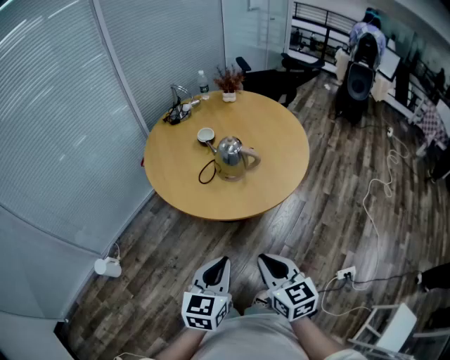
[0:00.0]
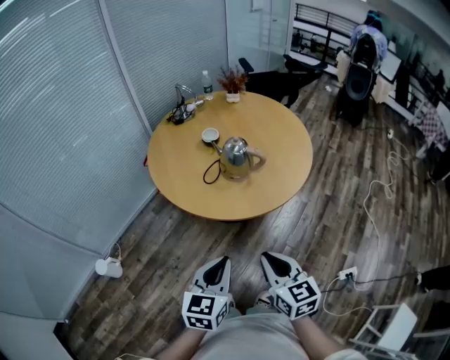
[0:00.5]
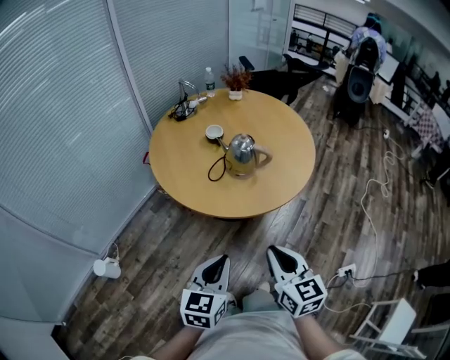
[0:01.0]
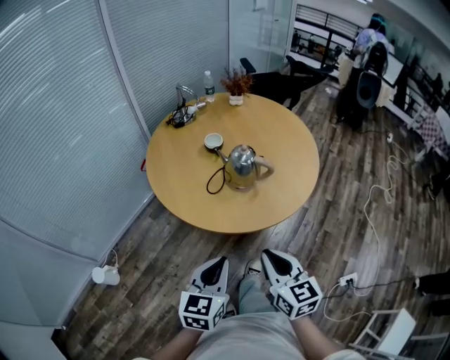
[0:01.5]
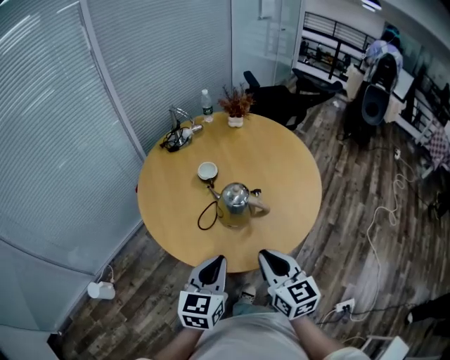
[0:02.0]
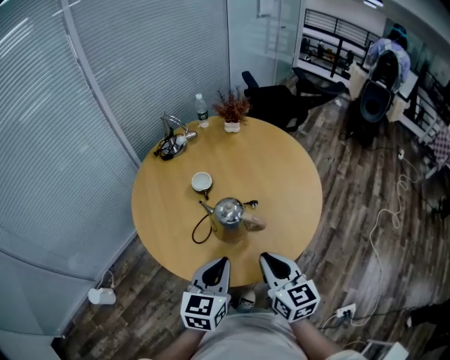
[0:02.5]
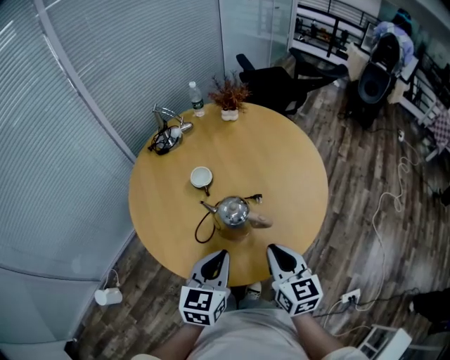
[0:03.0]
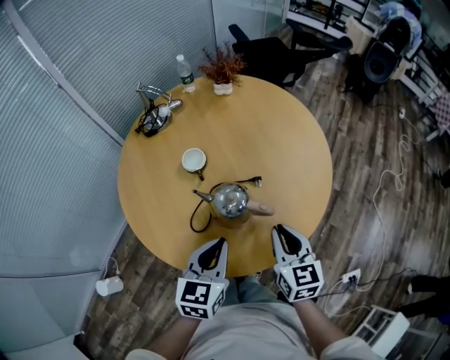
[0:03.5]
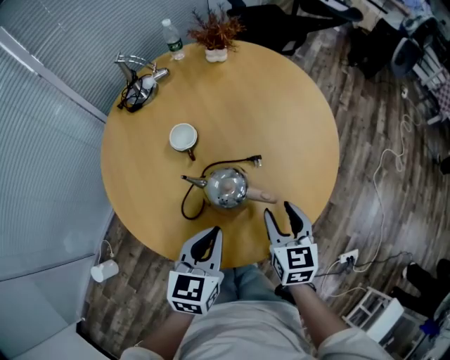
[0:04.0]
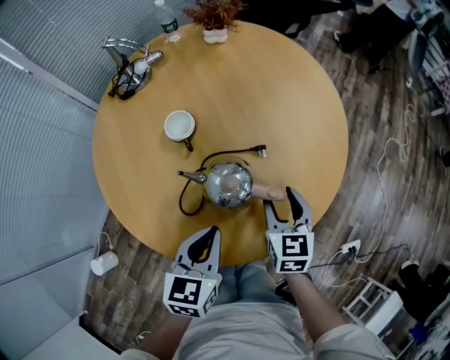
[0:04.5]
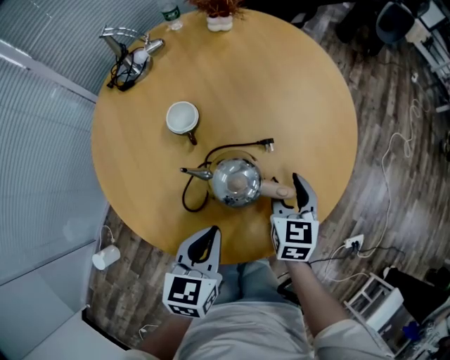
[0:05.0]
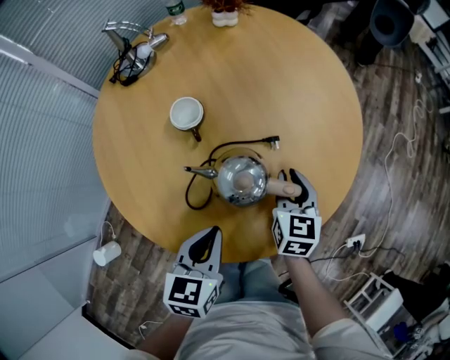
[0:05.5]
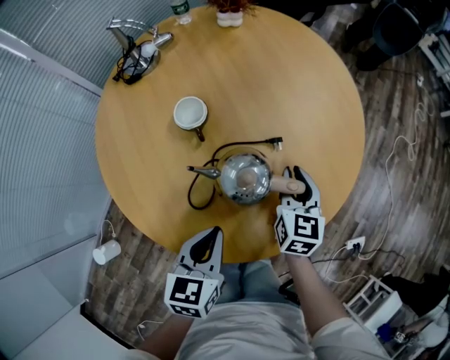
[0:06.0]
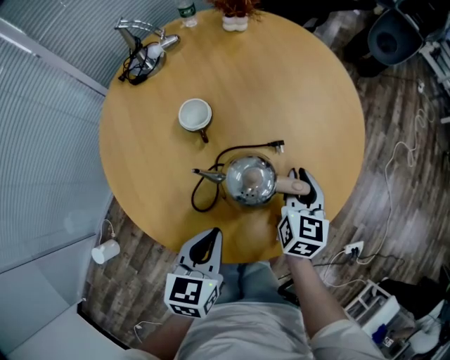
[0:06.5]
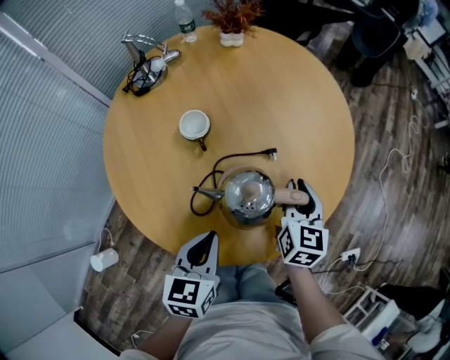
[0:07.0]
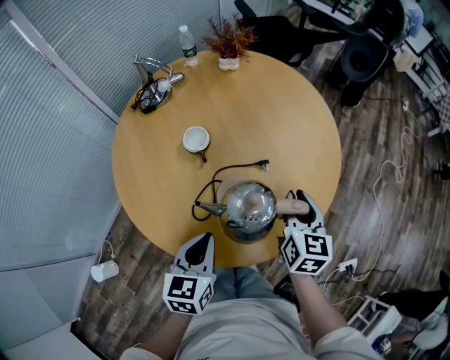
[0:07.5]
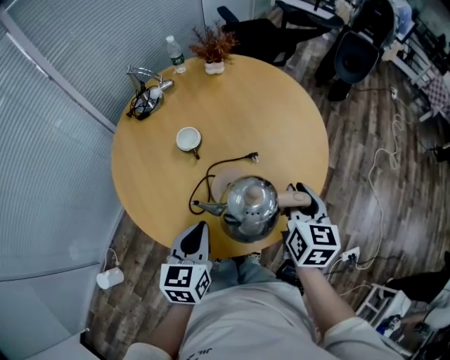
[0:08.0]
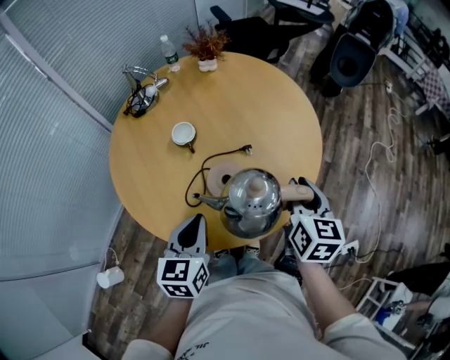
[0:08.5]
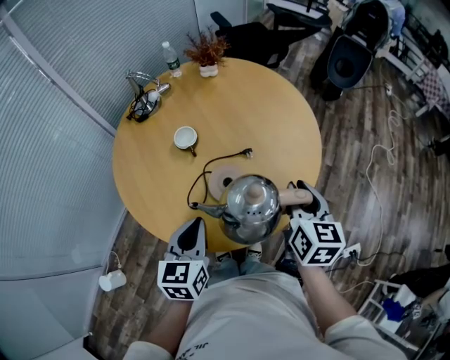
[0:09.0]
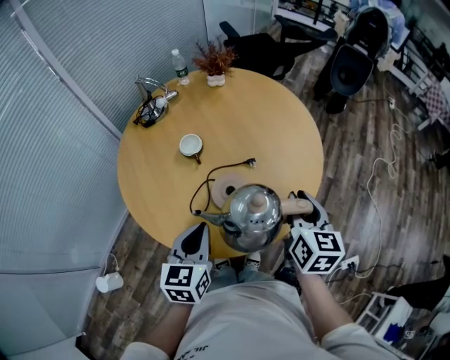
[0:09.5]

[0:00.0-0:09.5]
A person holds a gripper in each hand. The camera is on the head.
0:00.0 to 0:02.0: Both grippers travel together forward, approximately 25 cm.
0:02.0 to 0:04.0: Both grippers move forward and downward, some 20 cm. The right gripper changes its angle by some 20 degrees, and opens its fingers.
0:04.0 to 0:05.5: The left gripper heads downward, covering approximately 5 cm. Meanwhile the right gripper goes roughly 10 cm forward and downward, and closes up.
0:05.5 to 0:07.5: The left gripper is displaced upward by roughly 5 cm, while the right gripper moves upward, about 10 cm.
0:07.5 to 0:09.5: The right gripper heads upward and backward, covering approximately 10 cm; the left gripper is displaced upward by about 5 cm.

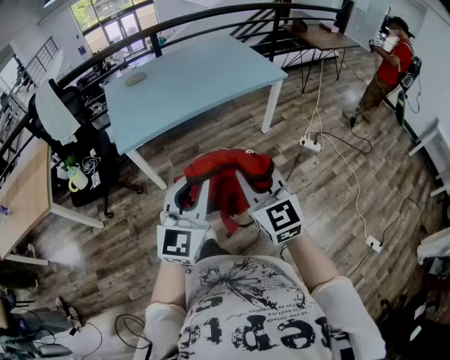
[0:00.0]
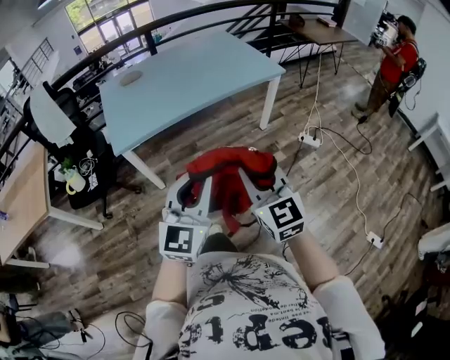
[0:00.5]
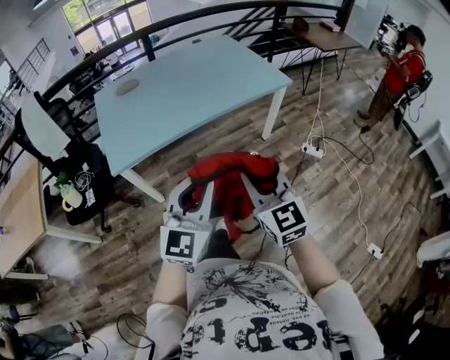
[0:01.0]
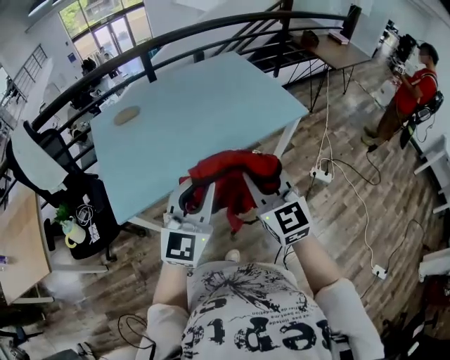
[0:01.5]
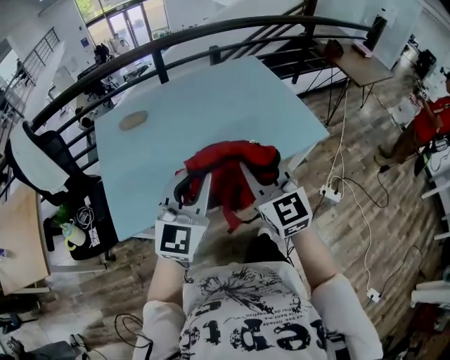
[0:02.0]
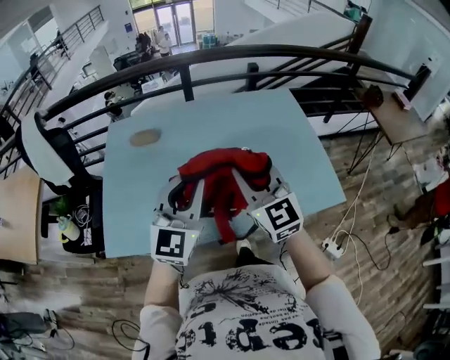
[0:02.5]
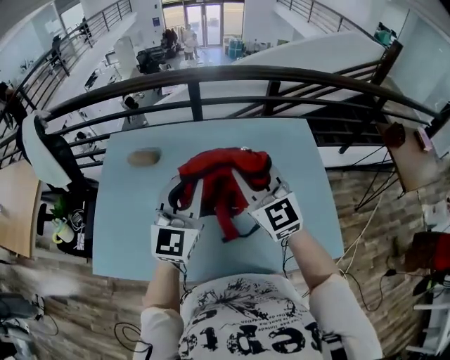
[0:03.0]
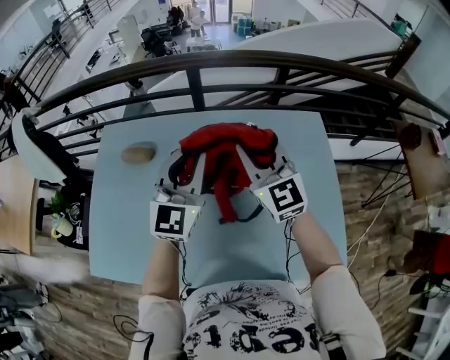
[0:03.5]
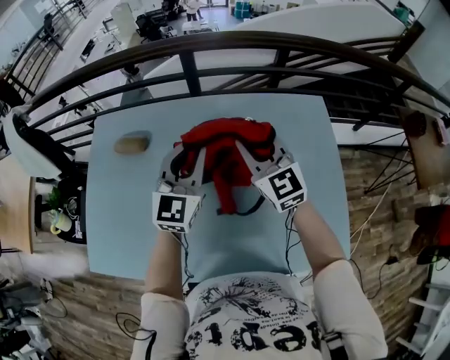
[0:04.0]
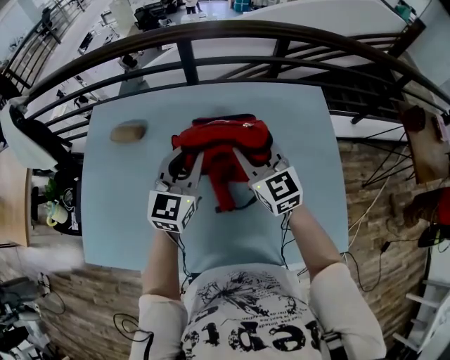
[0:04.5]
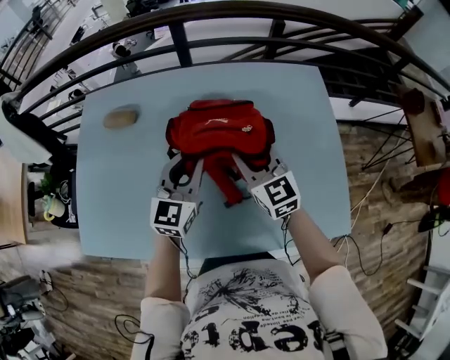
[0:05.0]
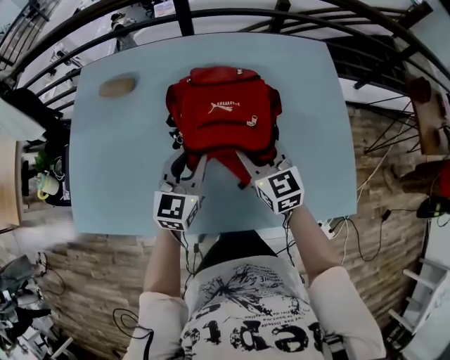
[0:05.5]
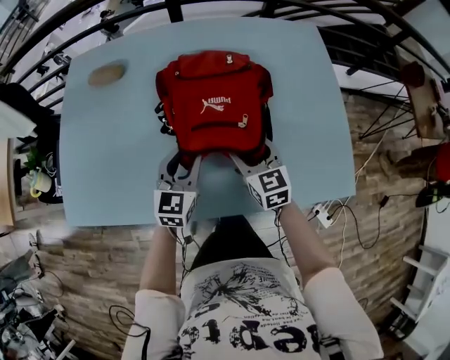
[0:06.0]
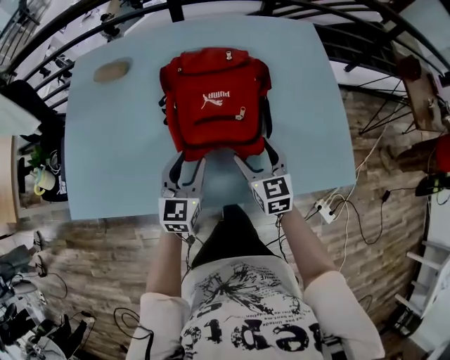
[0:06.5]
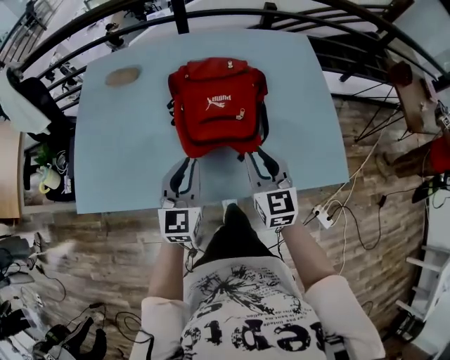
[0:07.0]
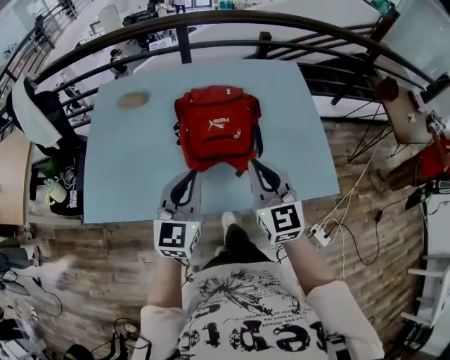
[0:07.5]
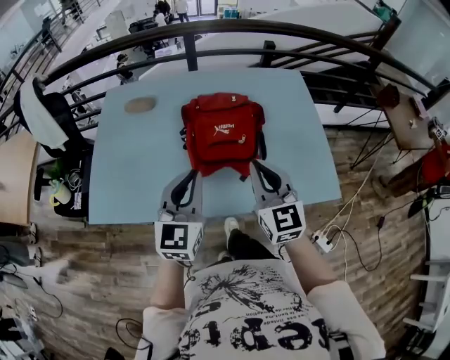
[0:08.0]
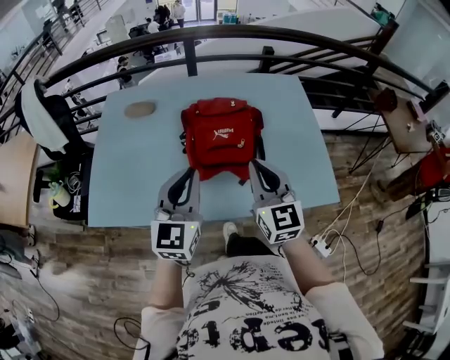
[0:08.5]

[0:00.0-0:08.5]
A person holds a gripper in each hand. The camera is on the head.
0:00.0 to 0:02.0: Both grippers are carried forward, approximately 60 cm.
0:02.0 to 0:04.0: Both grippers are carried about 50 cm. The left gripper swivels some 20 degrees. Meanwhile the right gripper rotates some 30 degrees.
0:04.0 to 0:06.5: Both grippers travel together backward and downward, roughly 35 cm. The left gripper changes its angle by about 20 degrees, and opens its fingers, while the right gripper changes its angle by approximately 30 degrees, and opens its fingers.
0:06.5 to 0:08.5: The two grippers go about 25 cm upward. The right gripper turns by about 20 degrees, and closes its fingers. The left gripper closes.

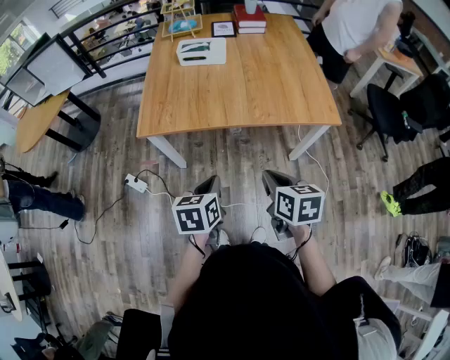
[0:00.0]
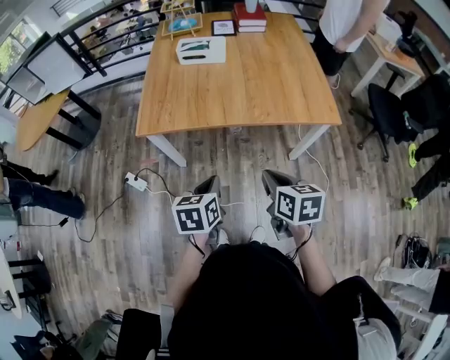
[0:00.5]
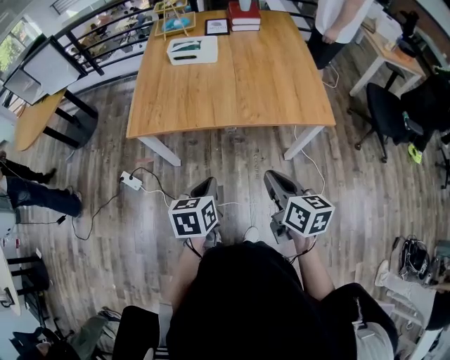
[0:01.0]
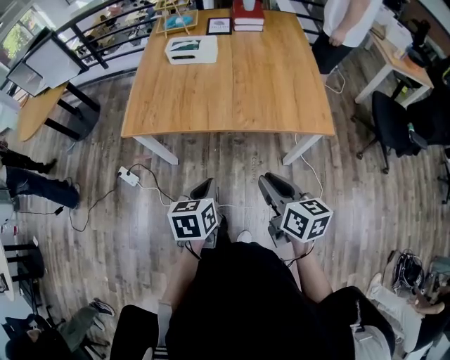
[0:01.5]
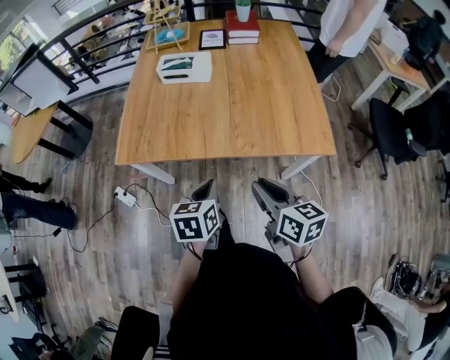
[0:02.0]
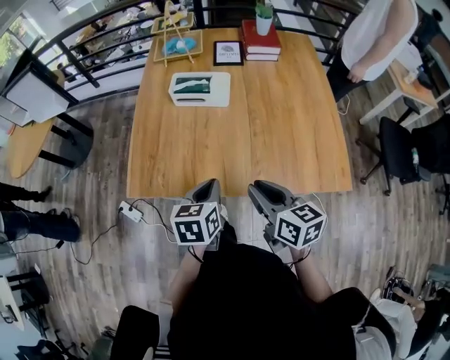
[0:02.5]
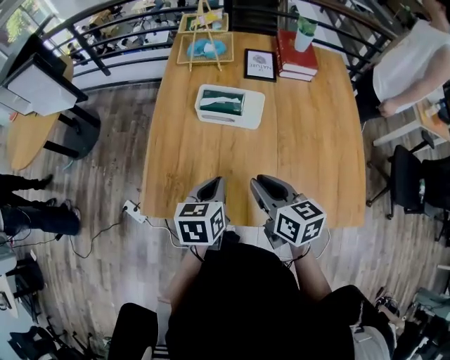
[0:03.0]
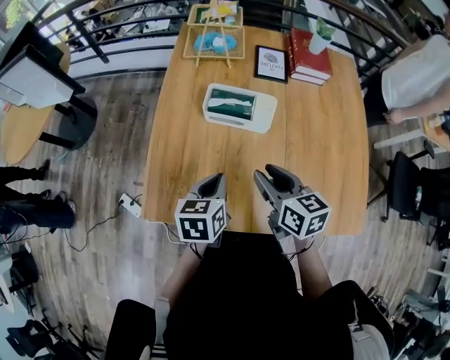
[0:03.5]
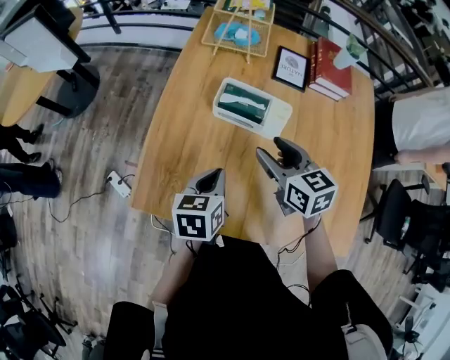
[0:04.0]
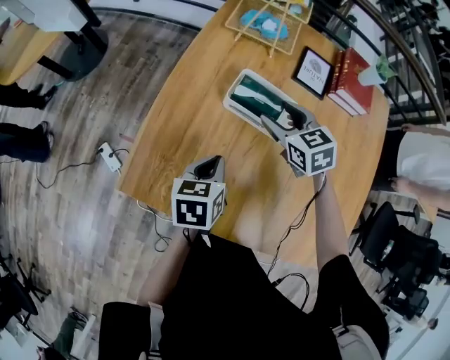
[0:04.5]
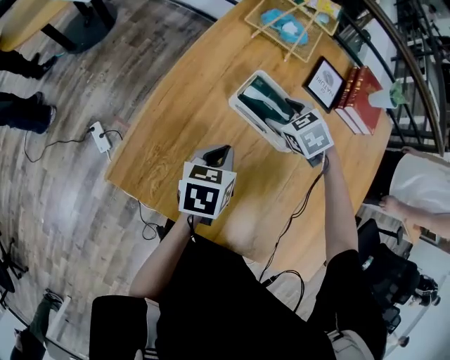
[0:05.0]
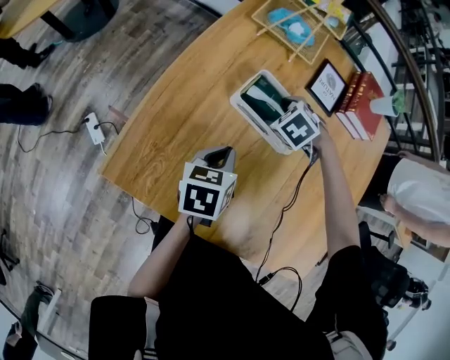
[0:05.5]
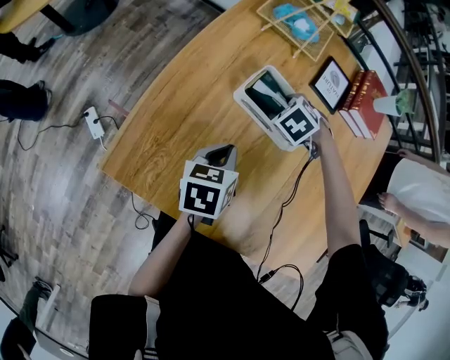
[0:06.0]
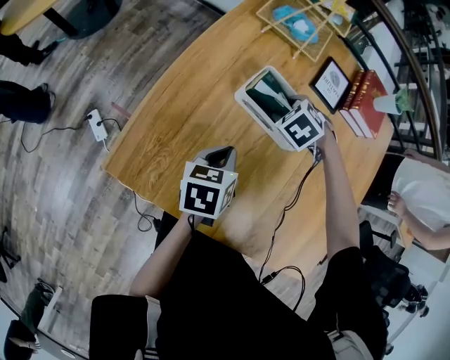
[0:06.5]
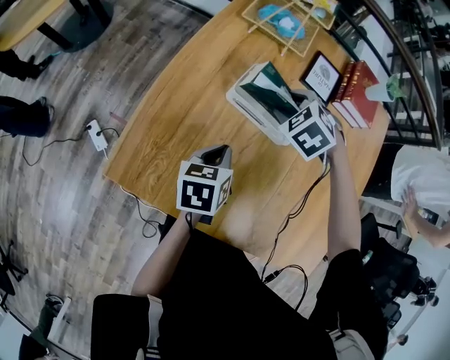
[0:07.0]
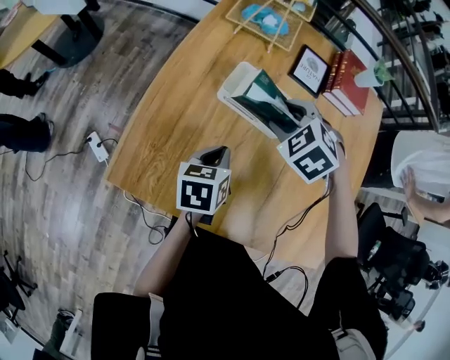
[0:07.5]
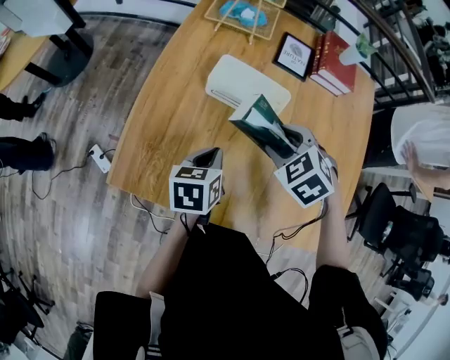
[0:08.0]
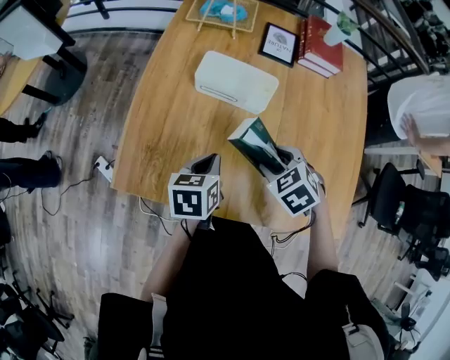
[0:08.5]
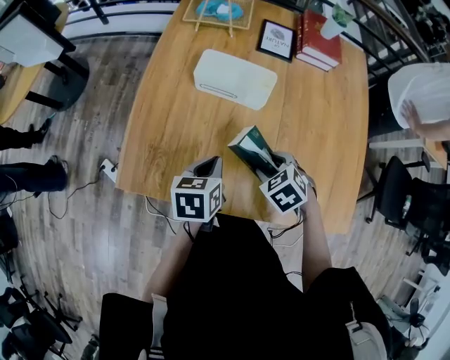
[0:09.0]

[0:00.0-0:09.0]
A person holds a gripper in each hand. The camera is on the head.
0:00.0 to 0:02.0: Both grippers move forward and to the right, roughly 15 cm.
0:02.0 to 0:04.5: Both grippers are carried forward, approximately 50 cm. The right gripper rolls counterclockwise, seen from behind, by approximately 40 degrees, and opens.
0:04.5 to 0:07.0: The right gripper moves some 15 cm downward and comes back, and swivels approximately 40 degrees.
0:07.0 to 0:09.0: The left gripper is displaced backward by roughly 10 cm. The right gripper is displaced backward and to the right by about 30 cm, and turns by about 30 degrees.
